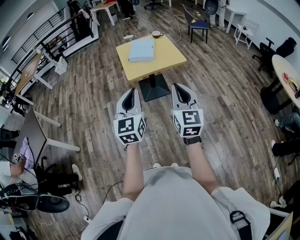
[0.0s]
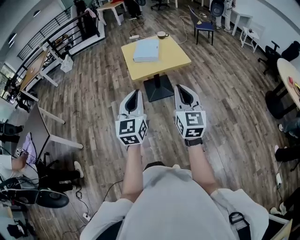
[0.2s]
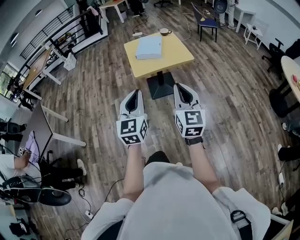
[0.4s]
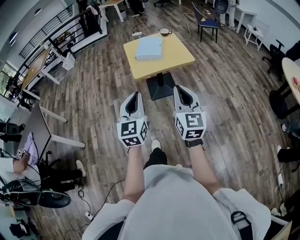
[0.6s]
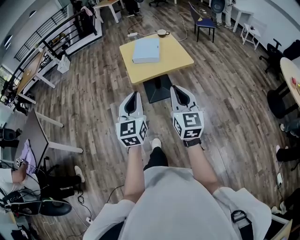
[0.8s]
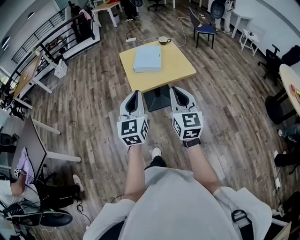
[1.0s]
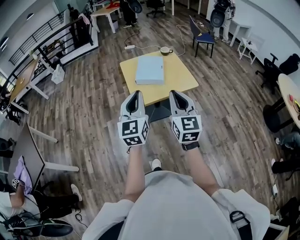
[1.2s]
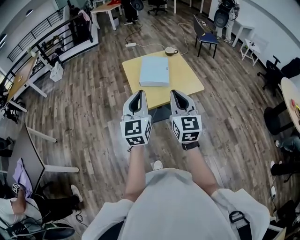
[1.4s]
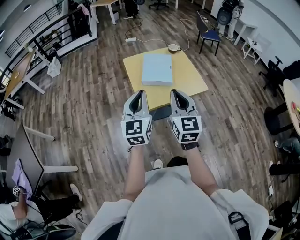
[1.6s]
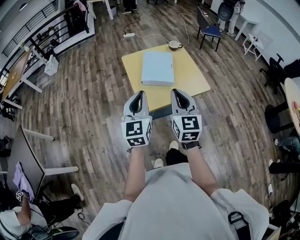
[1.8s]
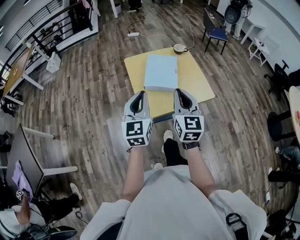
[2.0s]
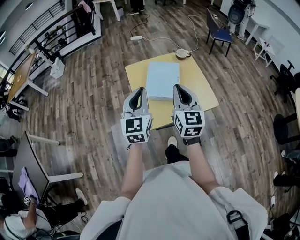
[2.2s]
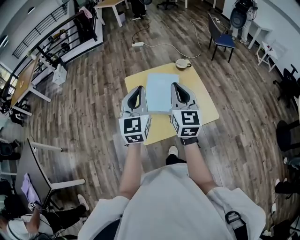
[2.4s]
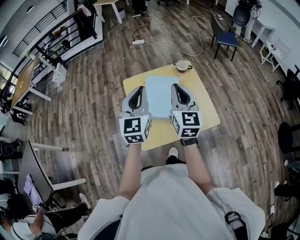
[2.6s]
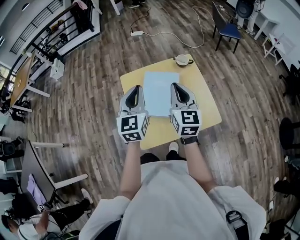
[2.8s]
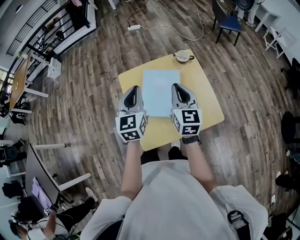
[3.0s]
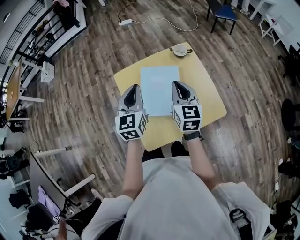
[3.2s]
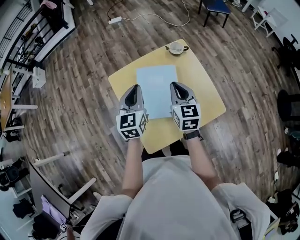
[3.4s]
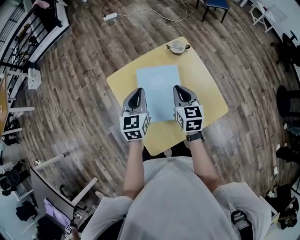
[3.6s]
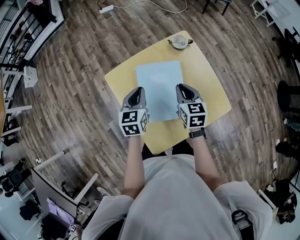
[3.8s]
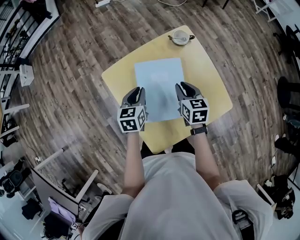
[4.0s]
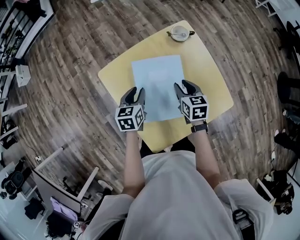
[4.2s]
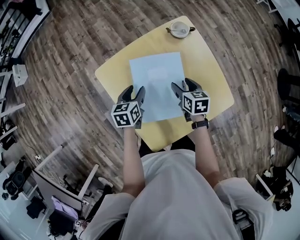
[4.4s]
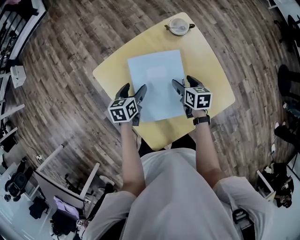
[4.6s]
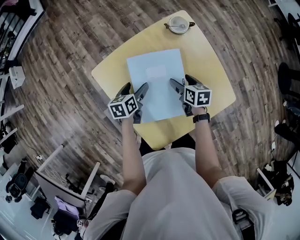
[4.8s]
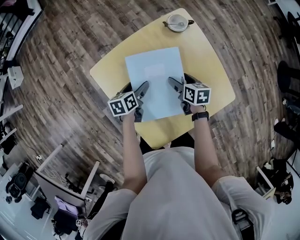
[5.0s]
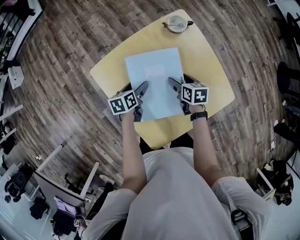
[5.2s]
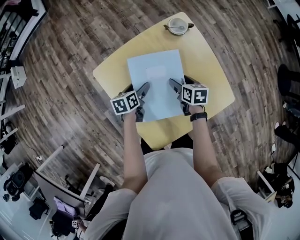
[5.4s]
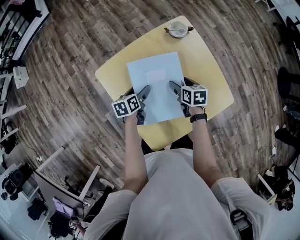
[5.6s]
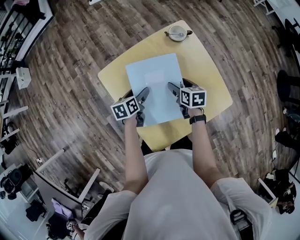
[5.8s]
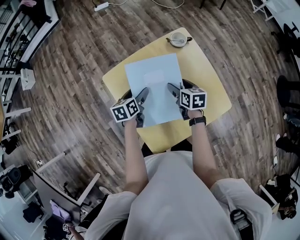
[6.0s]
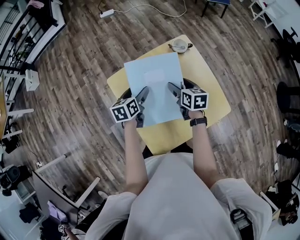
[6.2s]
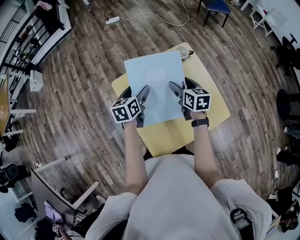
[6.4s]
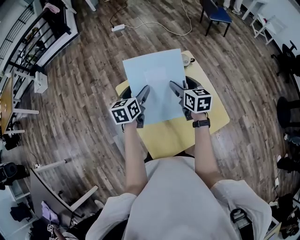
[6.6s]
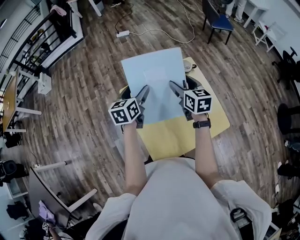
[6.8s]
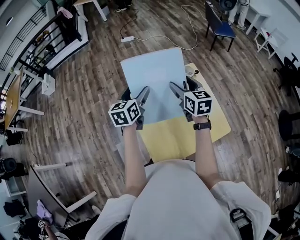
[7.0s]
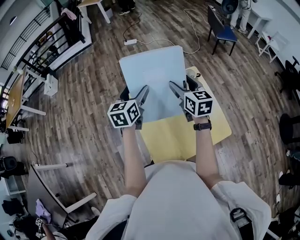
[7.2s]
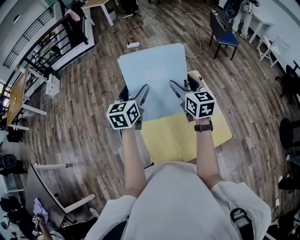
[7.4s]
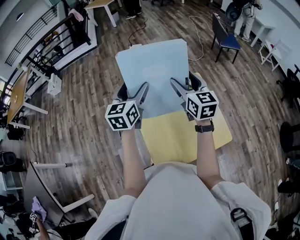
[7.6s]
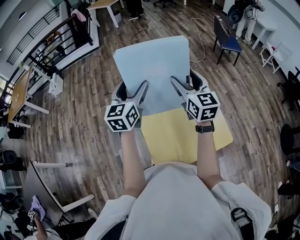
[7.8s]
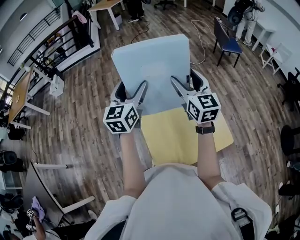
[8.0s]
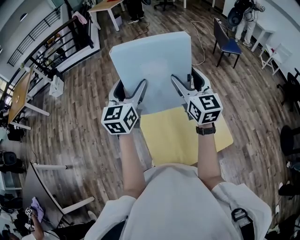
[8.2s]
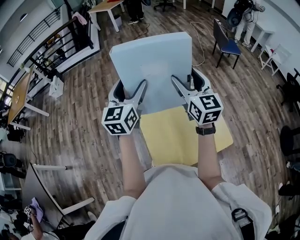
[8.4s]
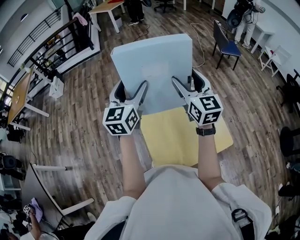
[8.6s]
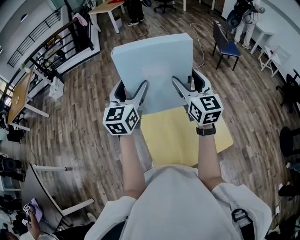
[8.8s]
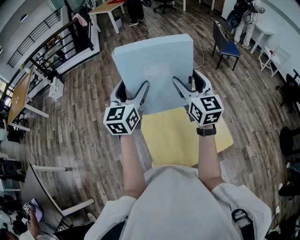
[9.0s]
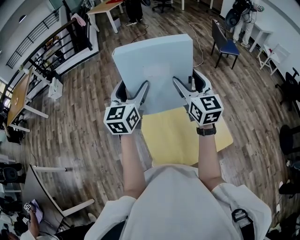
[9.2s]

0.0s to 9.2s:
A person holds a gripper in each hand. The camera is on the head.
0.0s to 1.6s: The left gripper heads forward, covering roughly 35 cm. Meanwhile the right gripper travels forward and to the left by approximately 35 cm.
1.6s to 3.0s: Both grippers move forward, some 40 cm.
3.0s to 4.6s: Both grippers travel together downward, approximately 30 cm. The right gripper tilts its fingers some 40 degrees downward, and opens. Meanwhile the left gripper tilts its fingers about 30 degrees downward, and opens up.
4.6s to 6.2s: Both grippers move upward, roughly 10 cm.
6.2s to 7.6s: Both grippers travel together upward, approximately 30 cm. The right gripper changes its angle by roughly 40 degrees; the left gripper changes its angle by roughly 40 degrees.
7.6s to 9.2s: The two grippers go roughly 5 cm upward.

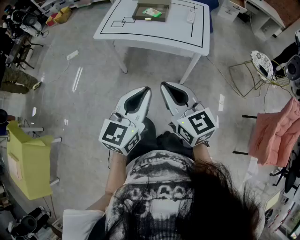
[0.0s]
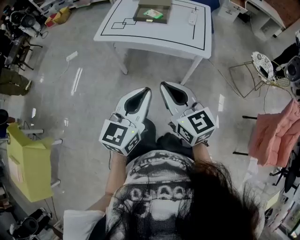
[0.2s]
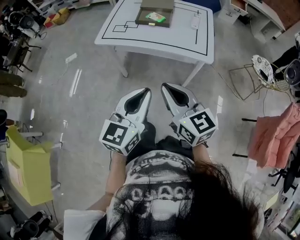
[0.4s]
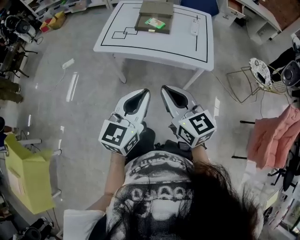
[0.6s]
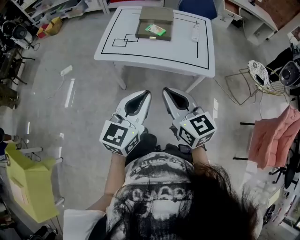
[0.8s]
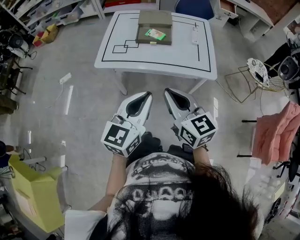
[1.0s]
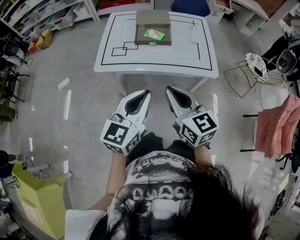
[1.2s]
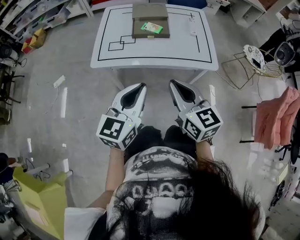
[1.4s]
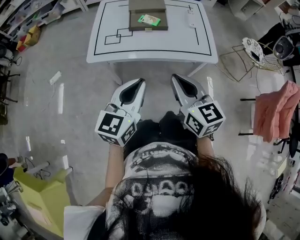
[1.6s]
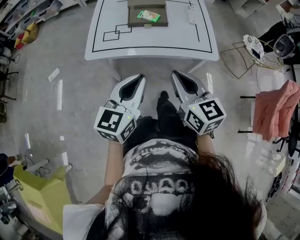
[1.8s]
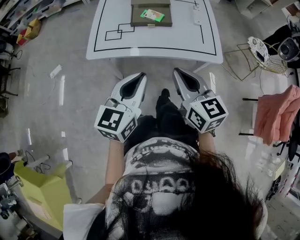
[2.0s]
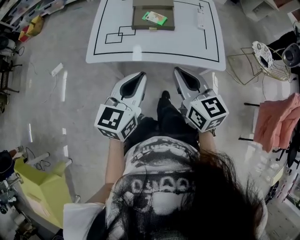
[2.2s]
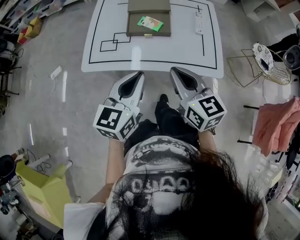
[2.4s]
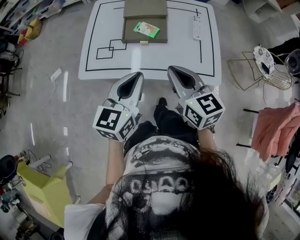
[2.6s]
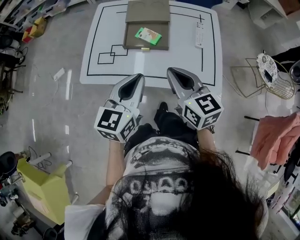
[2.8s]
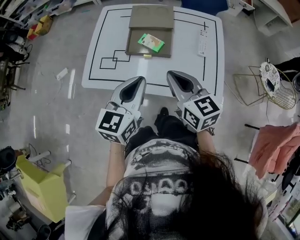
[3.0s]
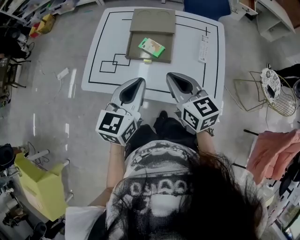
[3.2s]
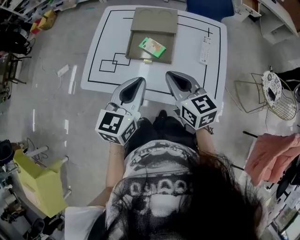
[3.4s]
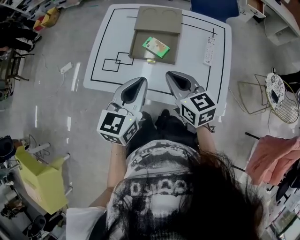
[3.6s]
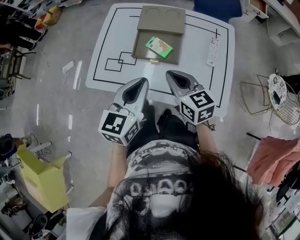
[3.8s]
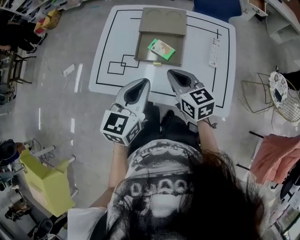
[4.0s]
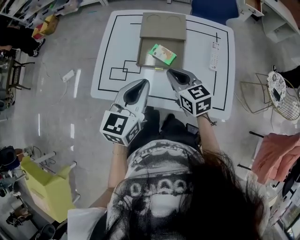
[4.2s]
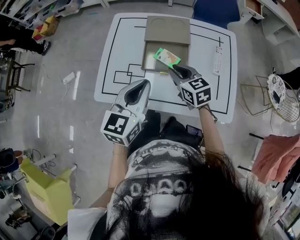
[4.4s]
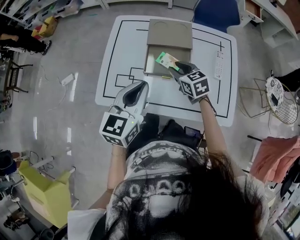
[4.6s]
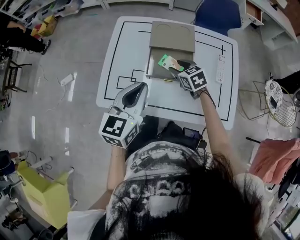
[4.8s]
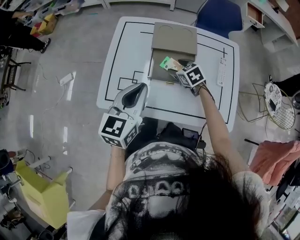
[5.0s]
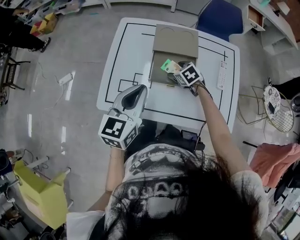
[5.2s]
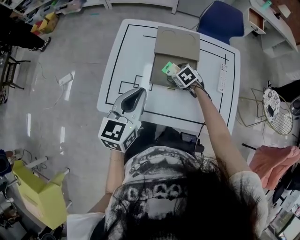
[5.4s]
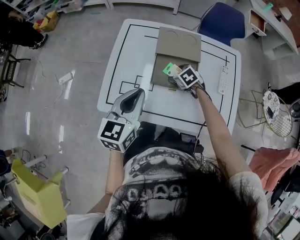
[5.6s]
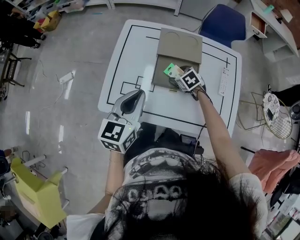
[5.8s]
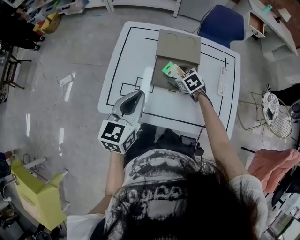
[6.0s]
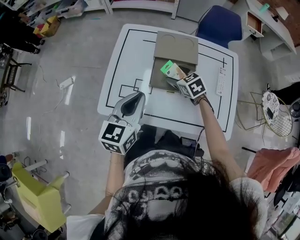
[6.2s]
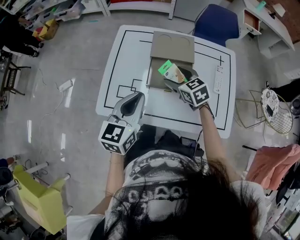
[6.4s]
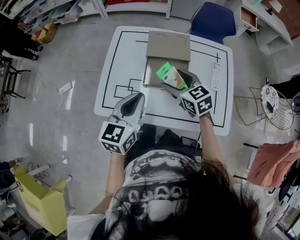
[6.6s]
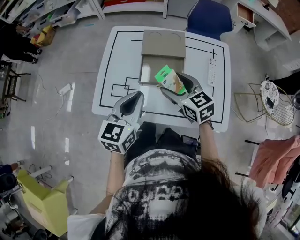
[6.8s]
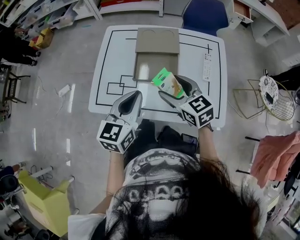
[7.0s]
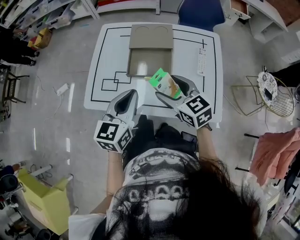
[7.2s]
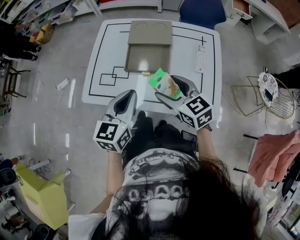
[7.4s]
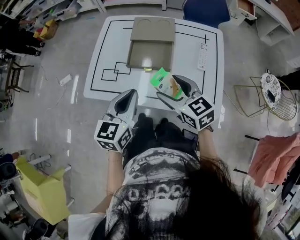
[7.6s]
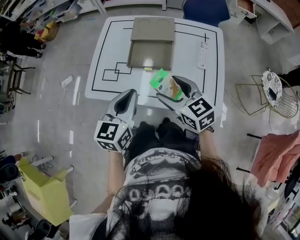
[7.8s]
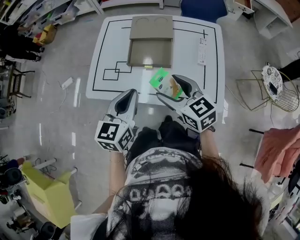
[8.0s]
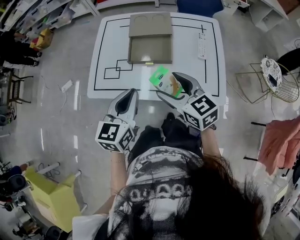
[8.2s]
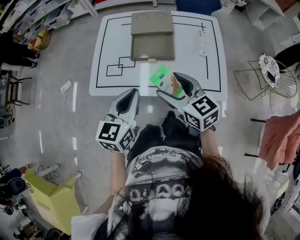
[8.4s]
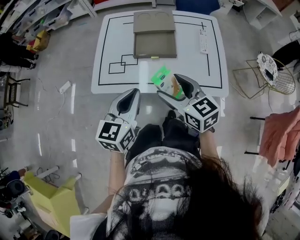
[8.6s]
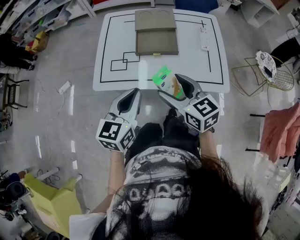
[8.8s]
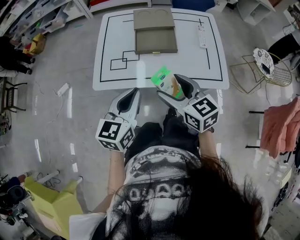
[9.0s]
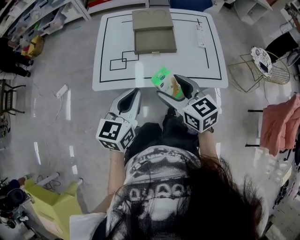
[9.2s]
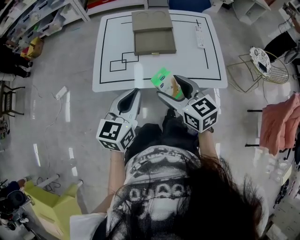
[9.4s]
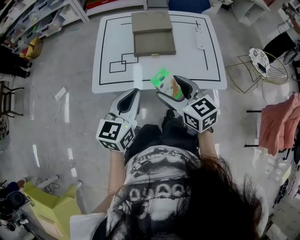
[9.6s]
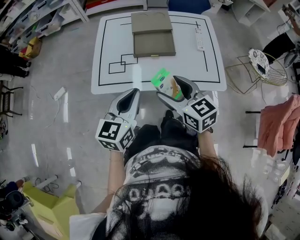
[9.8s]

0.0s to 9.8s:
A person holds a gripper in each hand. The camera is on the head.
0.0s to 1.4s: Both grippers move forward and to the left, about 25 cm.
1.4s to 2.8s: The two grippers go approximately 25 cm forward.
2.8s to 4.2s: The left gripper moves forward, some 10 cm. The right gripper travels forward and downward by some 15 cm.
4.2s to 5.6s: The left gripper moves to the left and forward, about 10 cm. The right gripper heads downward and forward, covering approximately 25 cm, angles its fingers downward, by roughly 40 degrees, and opens its fingers.
5.6s to 7.0s: The left gripper shifts roughly 10 cm to the right and backward. Meanwhile the right gripper heads upward and backward, covering some 25 cm, and tilts its fingers about 40 degrees upward.
7.0s to 8.4s: Both grippers move backward, approximately 10 cm.
8.4s to 9.8s: The grippers both shift to the left by approximately 5 cm.

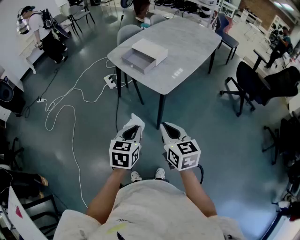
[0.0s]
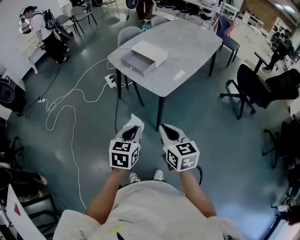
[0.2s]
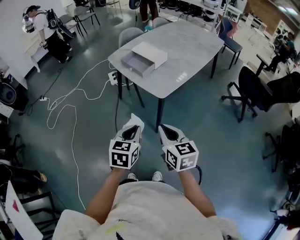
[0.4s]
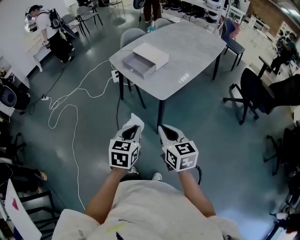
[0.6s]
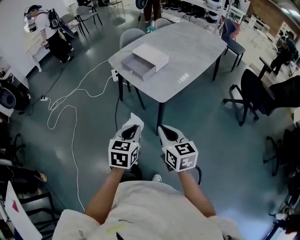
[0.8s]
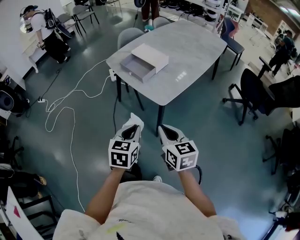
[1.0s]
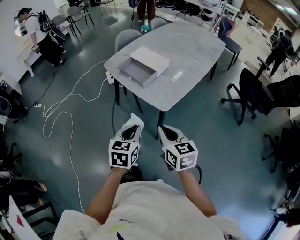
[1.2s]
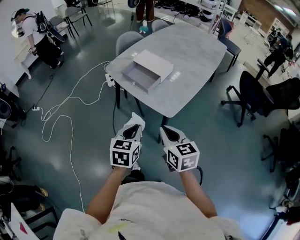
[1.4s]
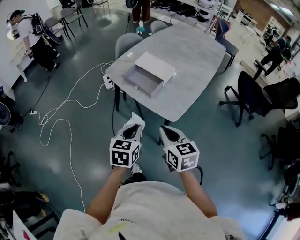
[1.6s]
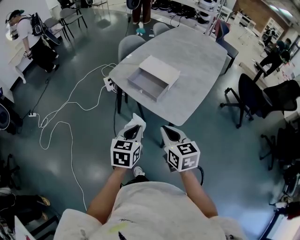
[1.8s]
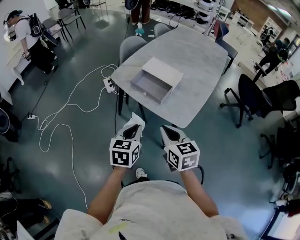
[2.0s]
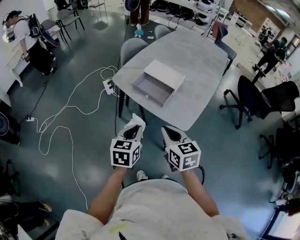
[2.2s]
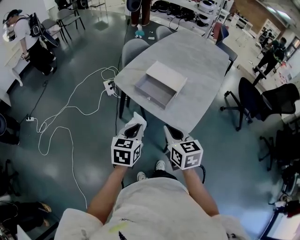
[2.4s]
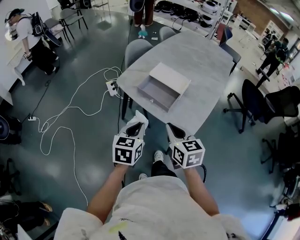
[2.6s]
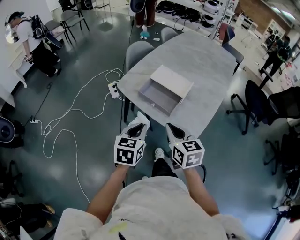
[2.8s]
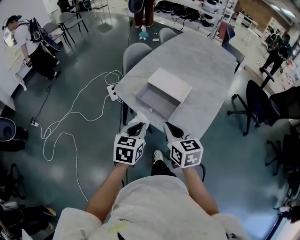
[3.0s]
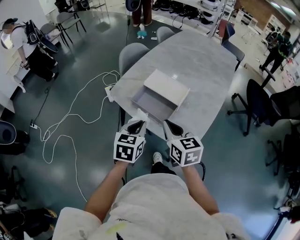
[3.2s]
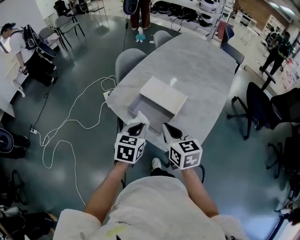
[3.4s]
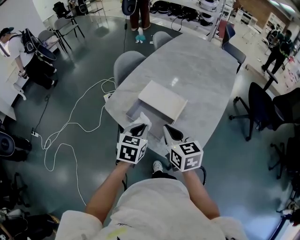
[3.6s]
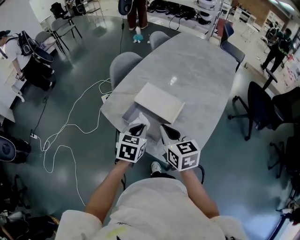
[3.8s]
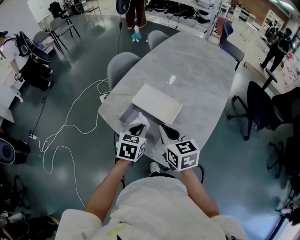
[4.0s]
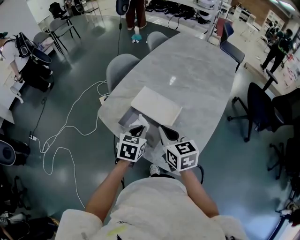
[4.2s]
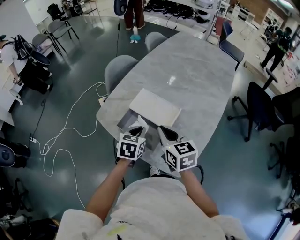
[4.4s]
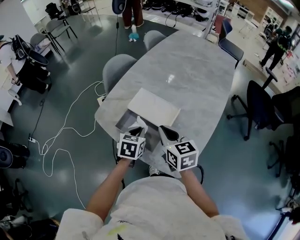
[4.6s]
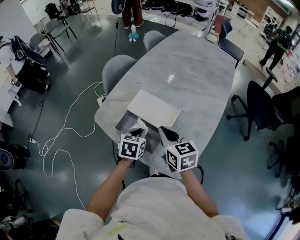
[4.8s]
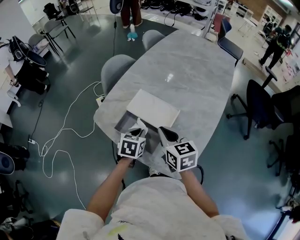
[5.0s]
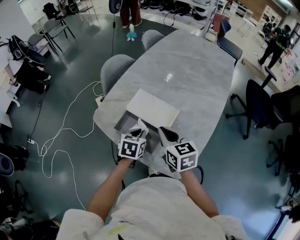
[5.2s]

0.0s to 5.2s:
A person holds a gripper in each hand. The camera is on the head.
0.0s to 1.8s: The two grippers go about 20 cm forward.
1.8s to 3.4s: The two grippers go roughly 20 cm forward.
3.4s to 5.2s: The right gripper is displaced forward and to the right by about 10 cm. Meanwhile the left gripper is displaced forward, downward and to the right by roughly 15 cm.
